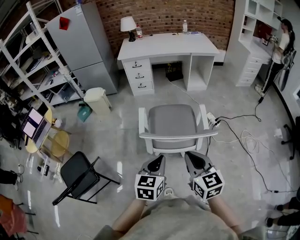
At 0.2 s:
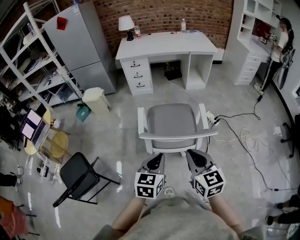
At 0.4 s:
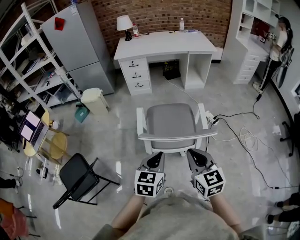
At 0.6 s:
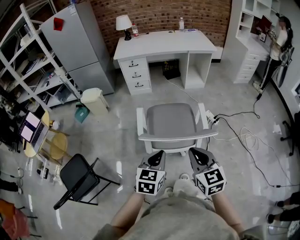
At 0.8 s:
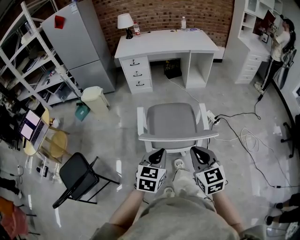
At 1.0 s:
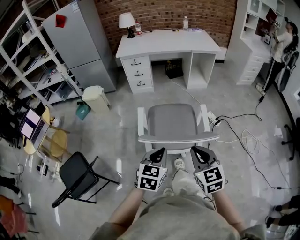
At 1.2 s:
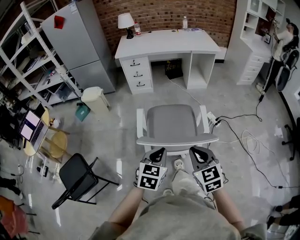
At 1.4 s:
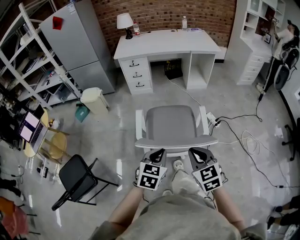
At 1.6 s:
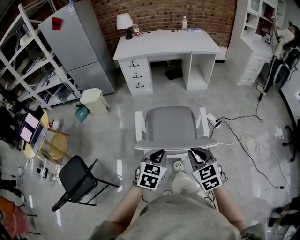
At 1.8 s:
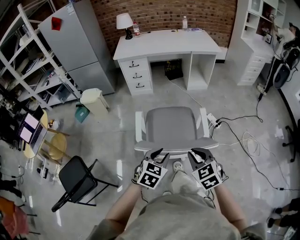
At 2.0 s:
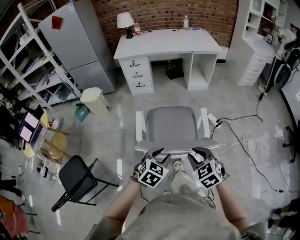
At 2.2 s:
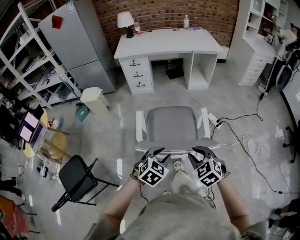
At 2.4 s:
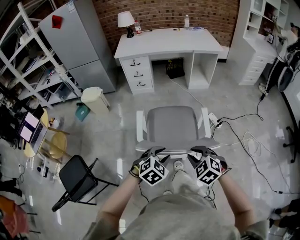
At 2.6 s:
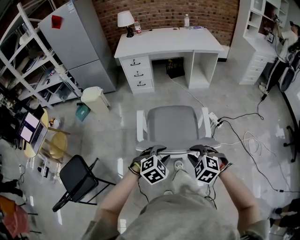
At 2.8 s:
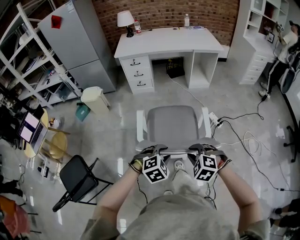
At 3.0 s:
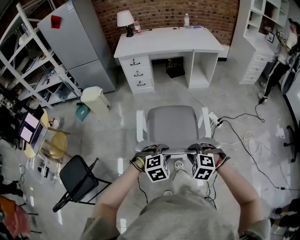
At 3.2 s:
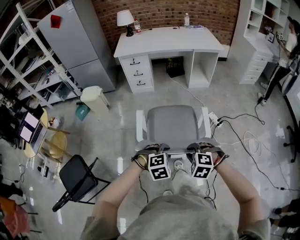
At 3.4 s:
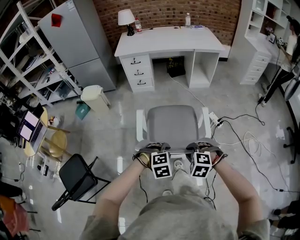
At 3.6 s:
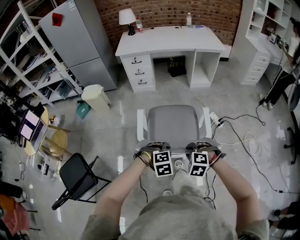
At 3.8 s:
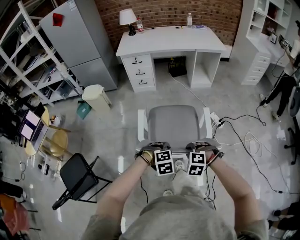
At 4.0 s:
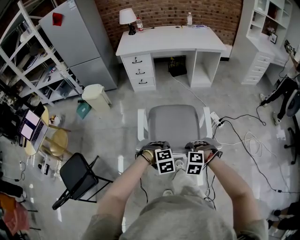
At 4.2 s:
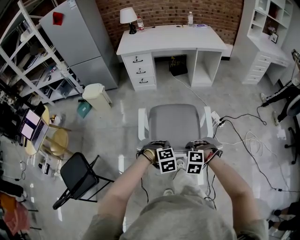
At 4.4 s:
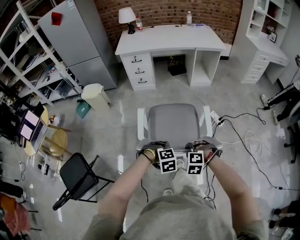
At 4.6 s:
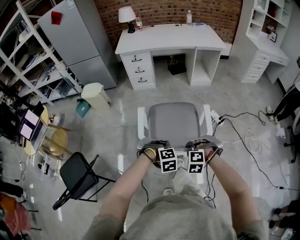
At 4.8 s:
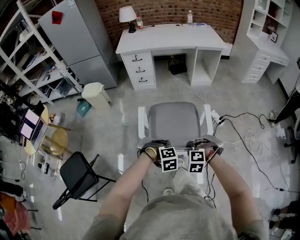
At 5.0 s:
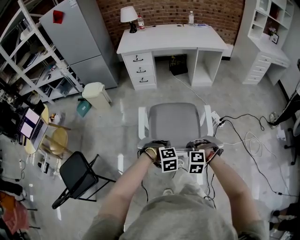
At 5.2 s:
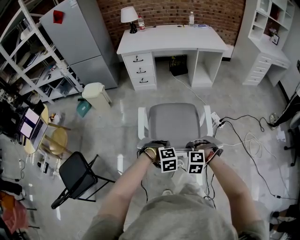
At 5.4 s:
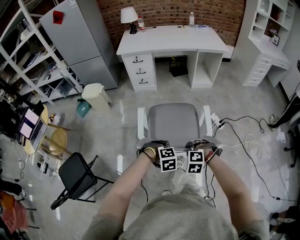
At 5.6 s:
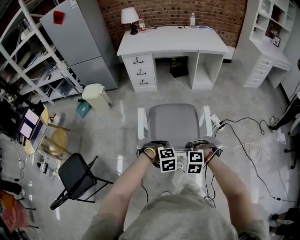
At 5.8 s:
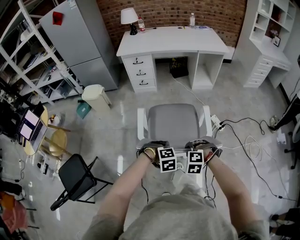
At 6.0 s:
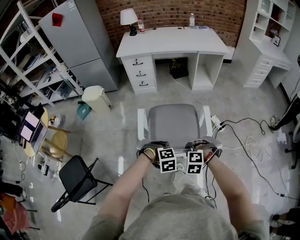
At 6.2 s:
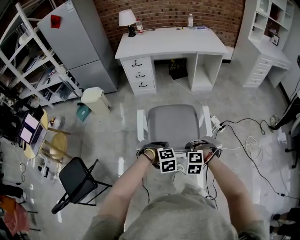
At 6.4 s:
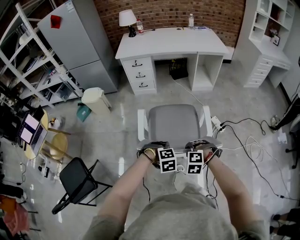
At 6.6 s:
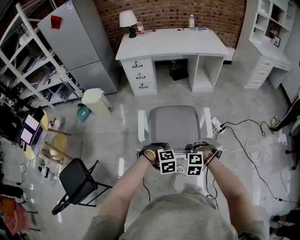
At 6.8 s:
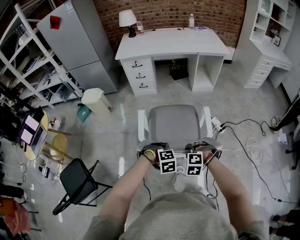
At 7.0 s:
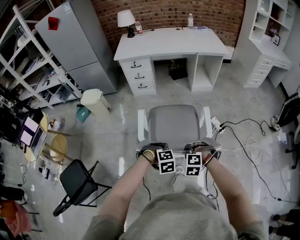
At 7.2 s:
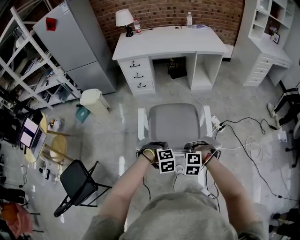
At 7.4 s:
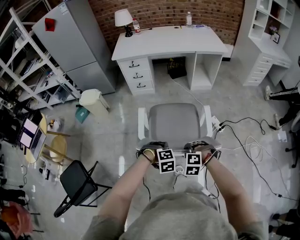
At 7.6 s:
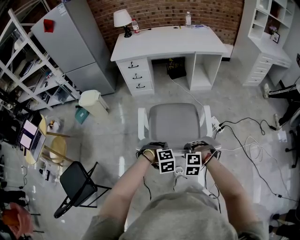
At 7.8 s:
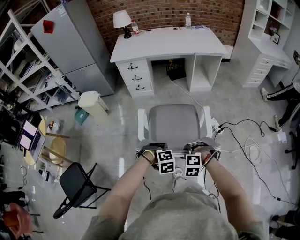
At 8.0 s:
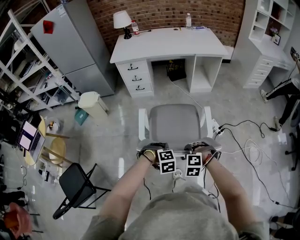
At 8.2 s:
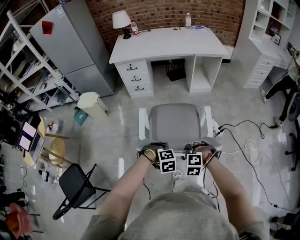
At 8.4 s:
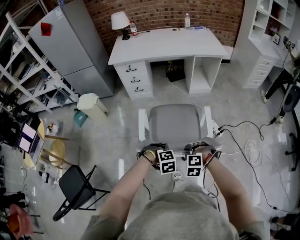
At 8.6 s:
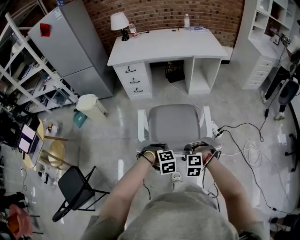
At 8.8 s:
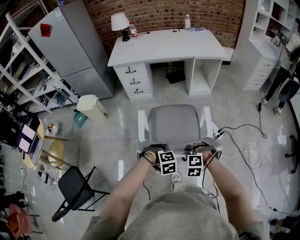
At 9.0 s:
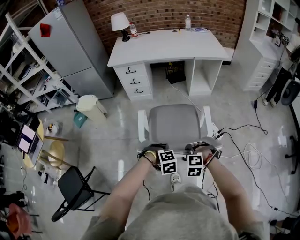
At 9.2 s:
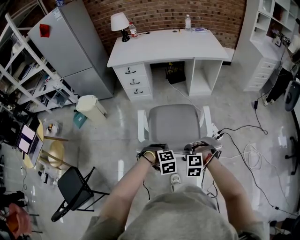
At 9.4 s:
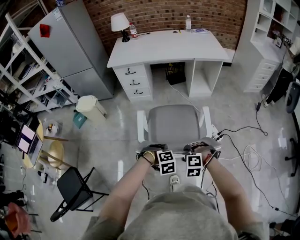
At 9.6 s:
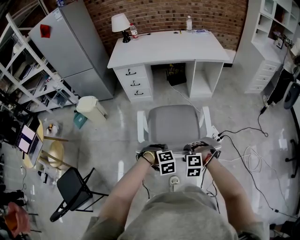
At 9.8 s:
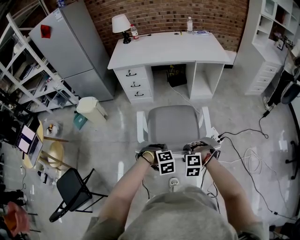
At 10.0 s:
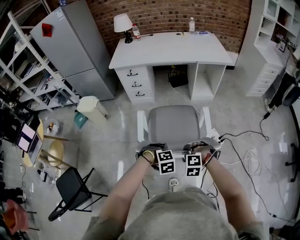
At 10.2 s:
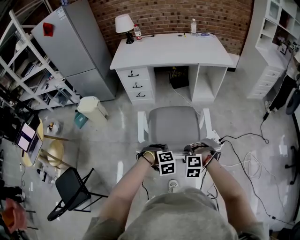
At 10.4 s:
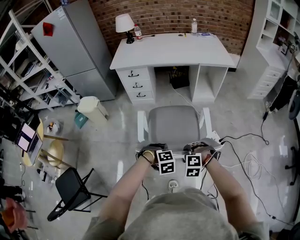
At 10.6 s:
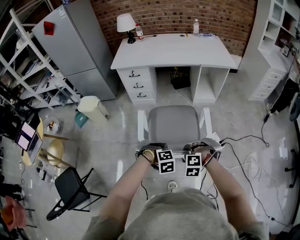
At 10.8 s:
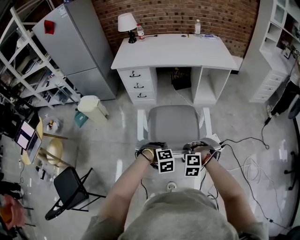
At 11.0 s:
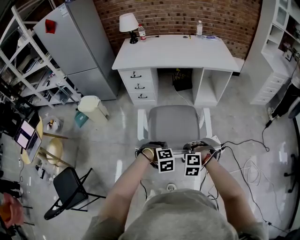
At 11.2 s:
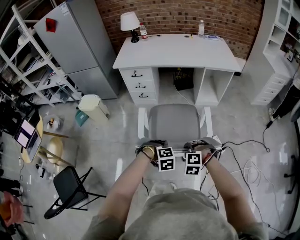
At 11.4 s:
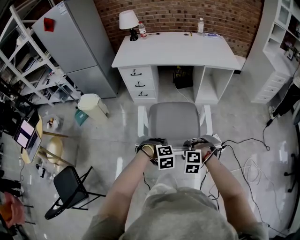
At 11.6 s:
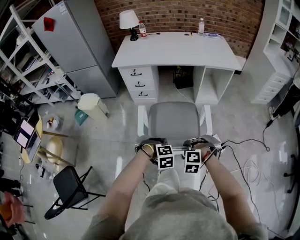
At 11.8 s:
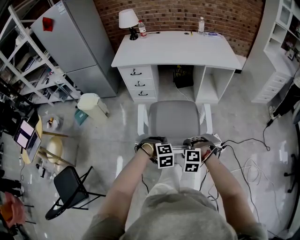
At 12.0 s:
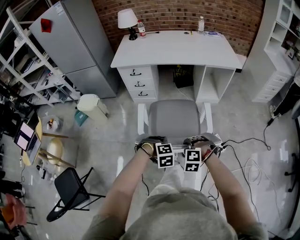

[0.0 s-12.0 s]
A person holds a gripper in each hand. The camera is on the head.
0.0 to 1.6 s: The two grippers go about 10 cm forward and downward. The right gripper changes its angle by roughly 20 degrees.
1.6 to 3.0 s: Both grippers travel together downward, about 5 cm. The right gripper rolls counterclockwise, seen from behind, by approximately 40 degrees. Meanwhile the left gripper twists some 50 degrees clockwise, seen from behind, and opens up.
3.0 to 4.4 s: The grippers both shift downward by roughly 5 cm. The left gripper closes up.
4.4 to 6.0 s: The grippers stay close to where they were, moving slightly.
6.0 to 7.6 s: The right gripper ends up roughly 5 cm from where it was. Meanwhile the left gripper is displaced forward by about 5 cm.
7.6 to 9.0 s: Both grippers move forward, roughly 5 cm.
9.0 to 10.4 s: The two grippers go about 5 cm forward.
10.4 to 12.0 s: Both grippers move forward, some 10 cm.

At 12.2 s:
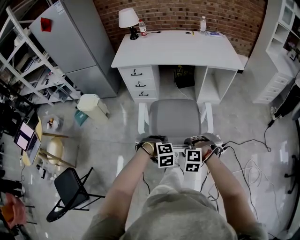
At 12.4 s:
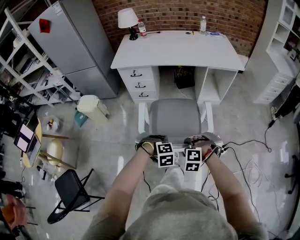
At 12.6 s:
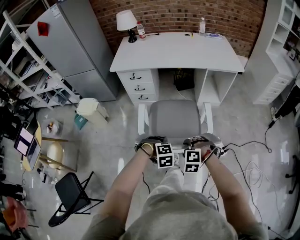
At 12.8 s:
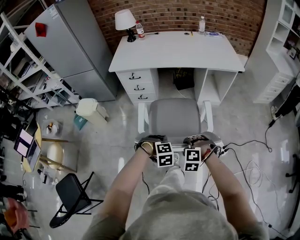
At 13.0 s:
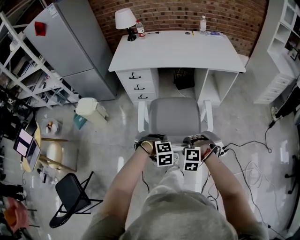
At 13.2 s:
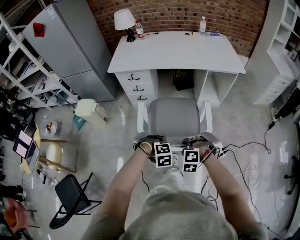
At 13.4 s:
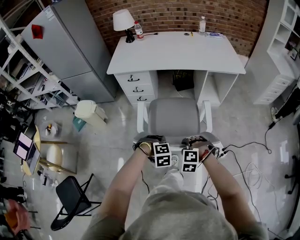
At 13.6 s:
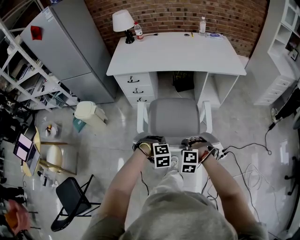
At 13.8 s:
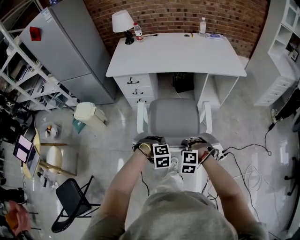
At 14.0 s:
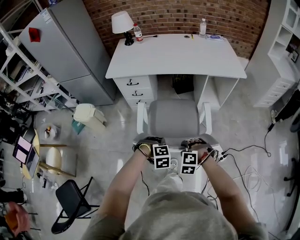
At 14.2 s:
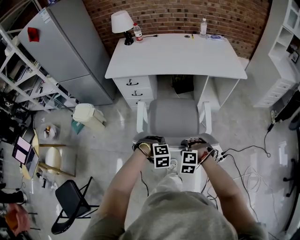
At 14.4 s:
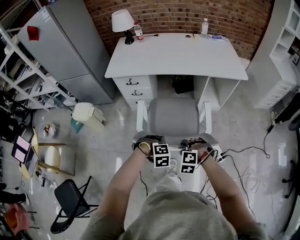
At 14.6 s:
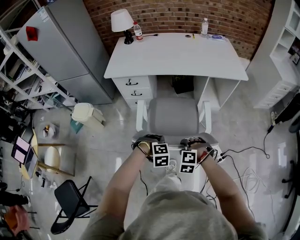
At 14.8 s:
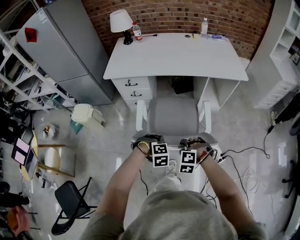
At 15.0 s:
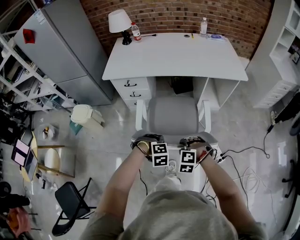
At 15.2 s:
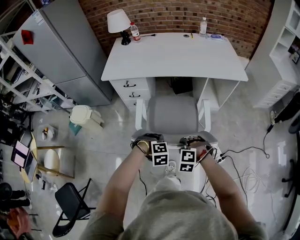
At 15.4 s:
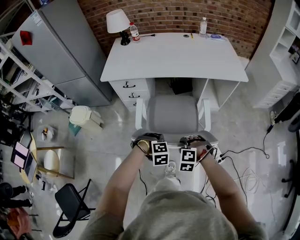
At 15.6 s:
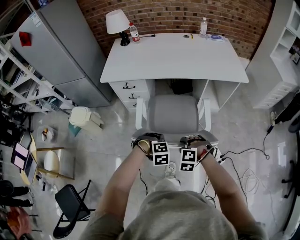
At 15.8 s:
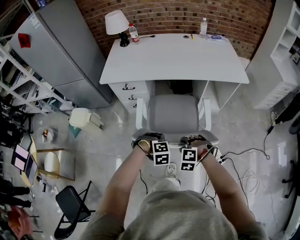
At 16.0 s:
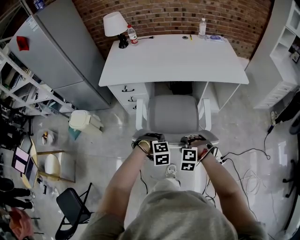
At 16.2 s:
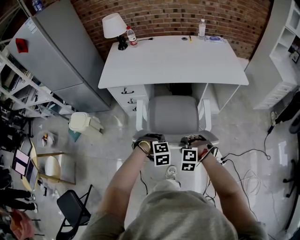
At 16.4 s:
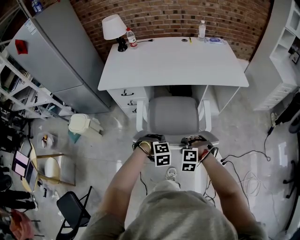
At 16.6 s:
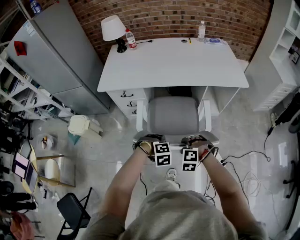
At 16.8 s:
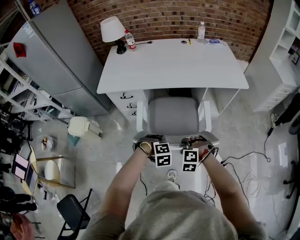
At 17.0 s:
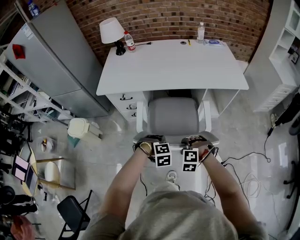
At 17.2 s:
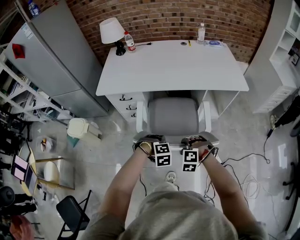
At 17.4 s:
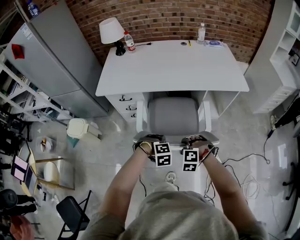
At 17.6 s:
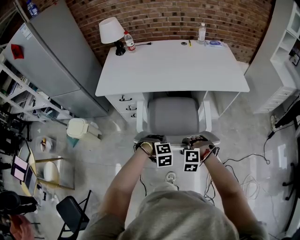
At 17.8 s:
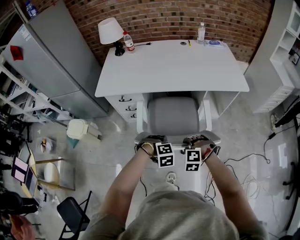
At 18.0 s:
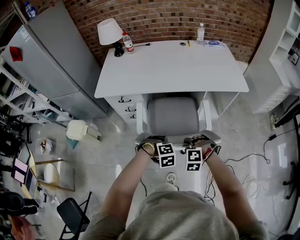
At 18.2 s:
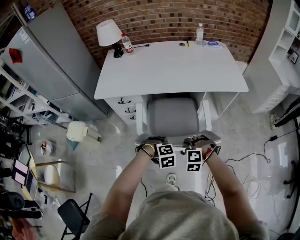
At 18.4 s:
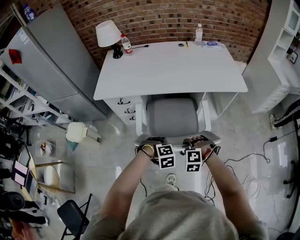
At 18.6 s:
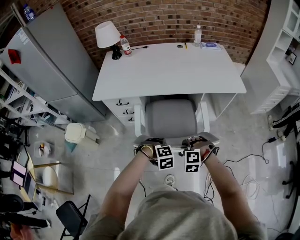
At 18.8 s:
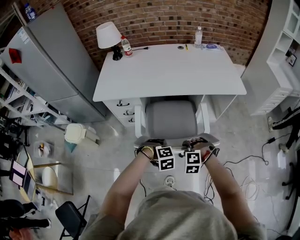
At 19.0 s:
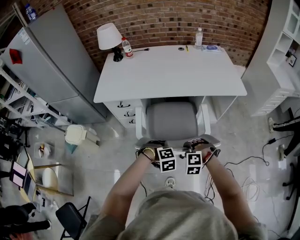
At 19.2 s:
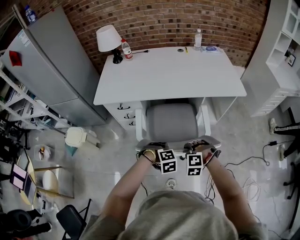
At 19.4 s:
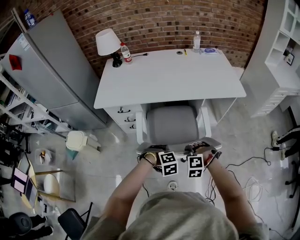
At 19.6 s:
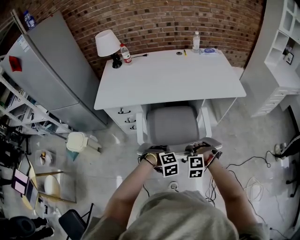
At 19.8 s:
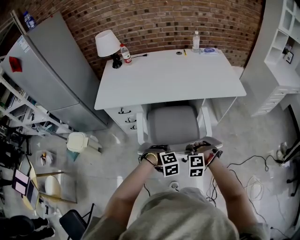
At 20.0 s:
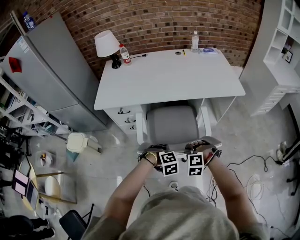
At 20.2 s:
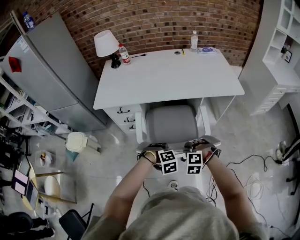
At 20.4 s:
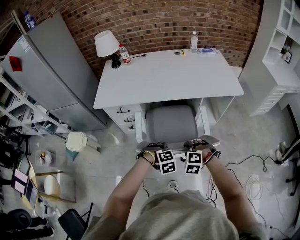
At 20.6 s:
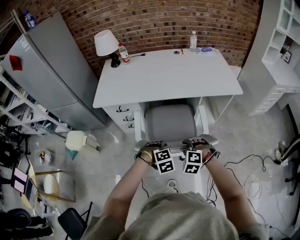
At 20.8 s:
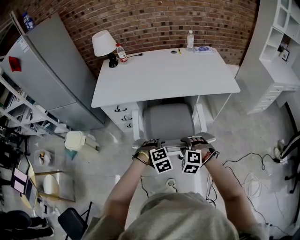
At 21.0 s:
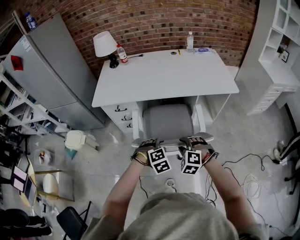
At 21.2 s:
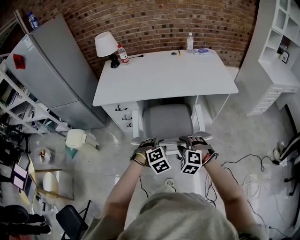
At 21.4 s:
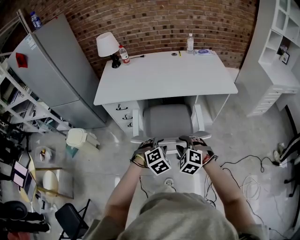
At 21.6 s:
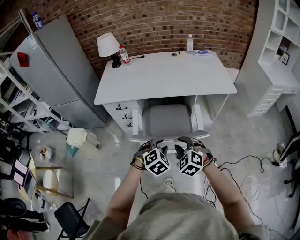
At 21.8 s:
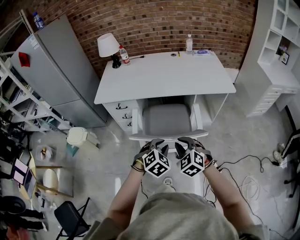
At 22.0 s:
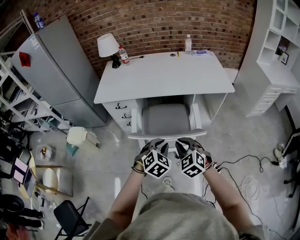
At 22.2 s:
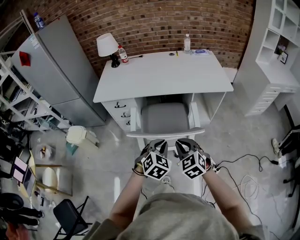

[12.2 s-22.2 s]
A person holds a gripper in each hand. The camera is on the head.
12.2 to 13.6 s: Both grippers travel together forward, approximately 10 cm.
13.6 to 15.0 s: Both grippers travel together forward, some 5 cm.
15.0 to 16.4 s: The two grippers go roughly 10 cm forward.
16.4 to 18.0 s: The grippers both shift forward by about 5 cm.
18.0 to 19.4 s: Both grippers stay about where they are.
19.4 to 20.8 s: The right gripper opens, while the left gripper opens up.
20.8 to 22.2 s: The two grippers go some 15 cm upward and backward. The left gripper swivels some 40 degrees, and closes, while the right gripper swivels roughly 40 degrees, and closes up.

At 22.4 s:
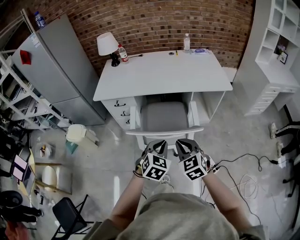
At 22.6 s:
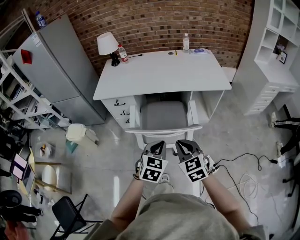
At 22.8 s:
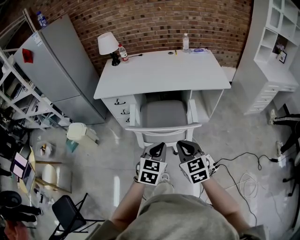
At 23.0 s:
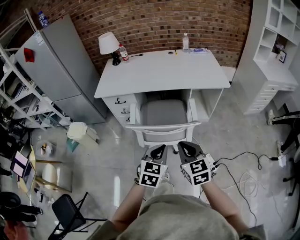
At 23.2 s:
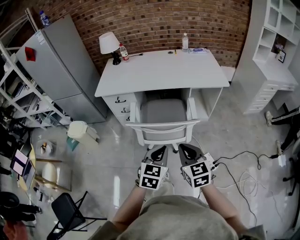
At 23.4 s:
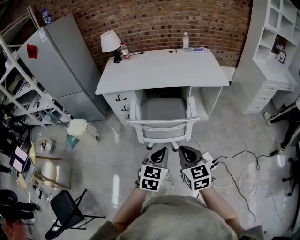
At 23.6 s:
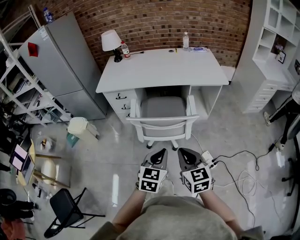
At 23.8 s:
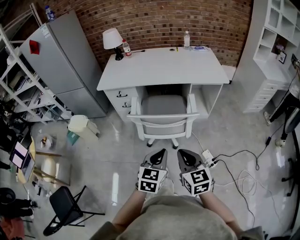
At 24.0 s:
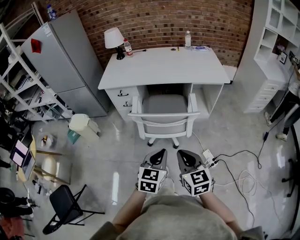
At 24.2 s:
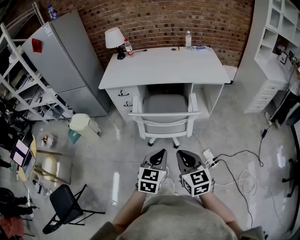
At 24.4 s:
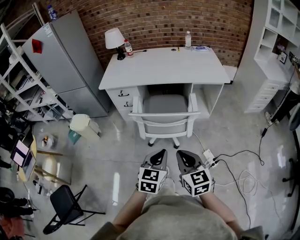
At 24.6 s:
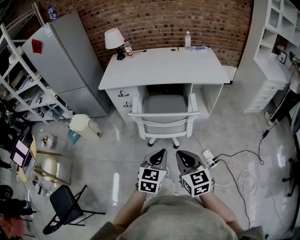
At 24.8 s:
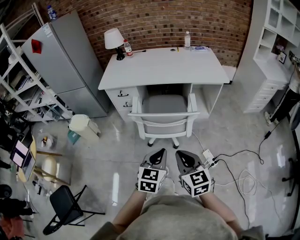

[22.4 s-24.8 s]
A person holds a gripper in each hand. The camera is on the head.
22.4 to 23.6 s: Both grippers move backward, about 15 cm. The left gripper rotates roughly 20 degrees. Meanwhile the right gripper turns by about 20 degrees.
23.6 to 24.8 s: The grippers stay close to where they were, moving slightly.
